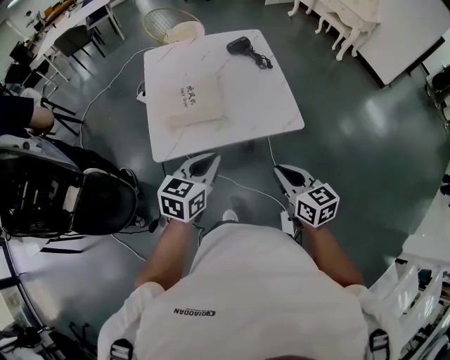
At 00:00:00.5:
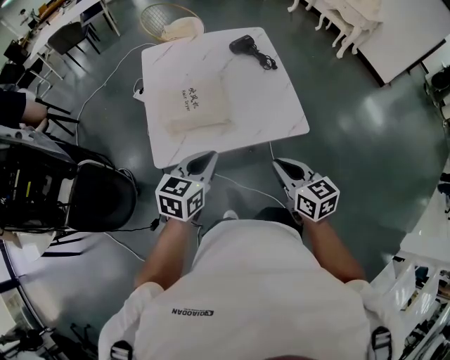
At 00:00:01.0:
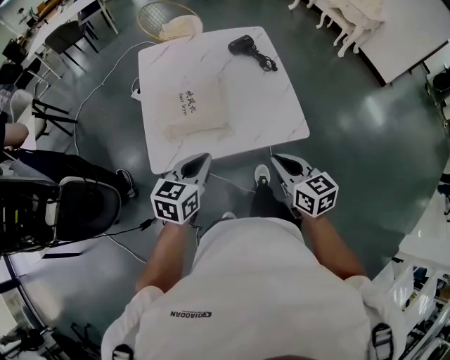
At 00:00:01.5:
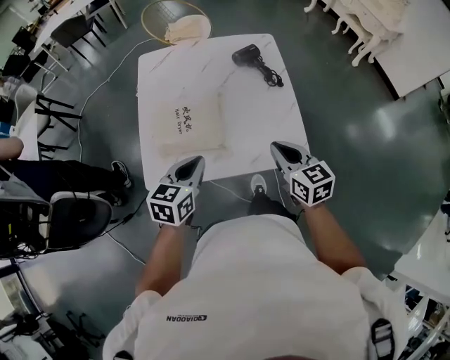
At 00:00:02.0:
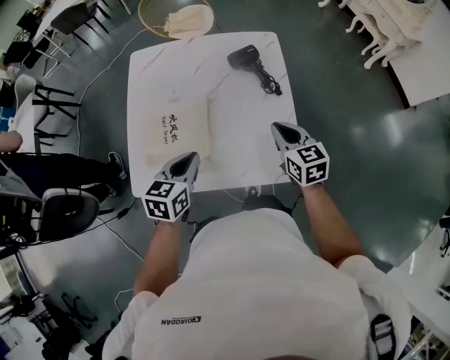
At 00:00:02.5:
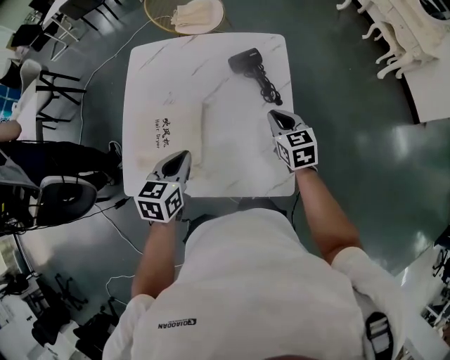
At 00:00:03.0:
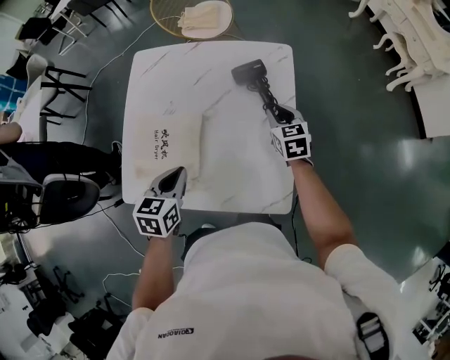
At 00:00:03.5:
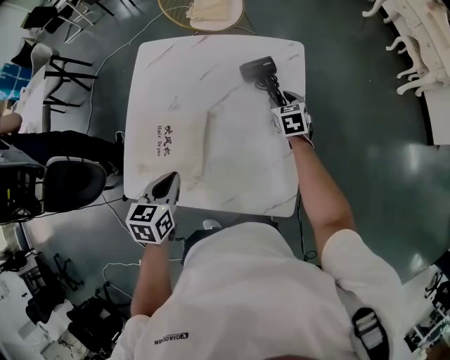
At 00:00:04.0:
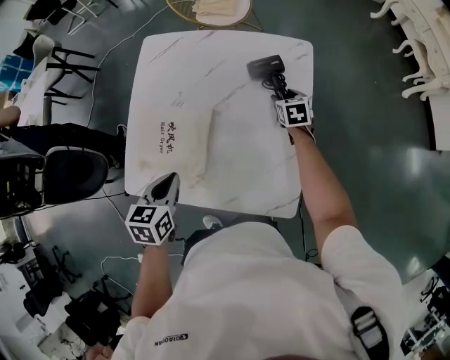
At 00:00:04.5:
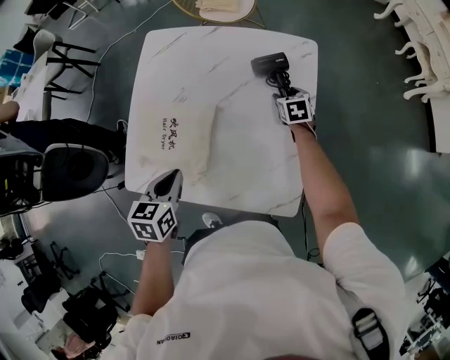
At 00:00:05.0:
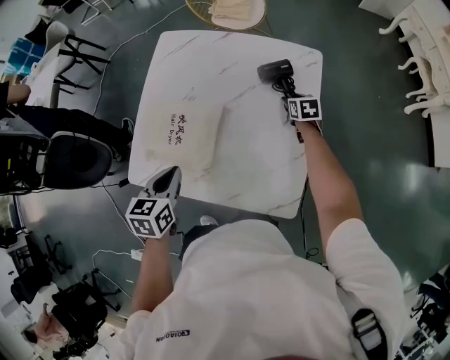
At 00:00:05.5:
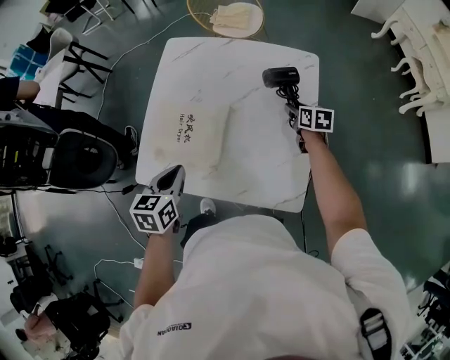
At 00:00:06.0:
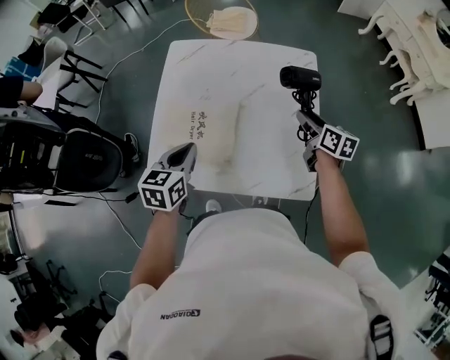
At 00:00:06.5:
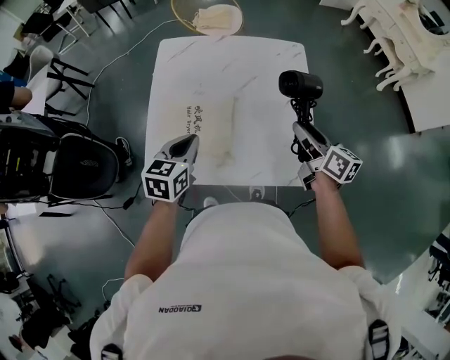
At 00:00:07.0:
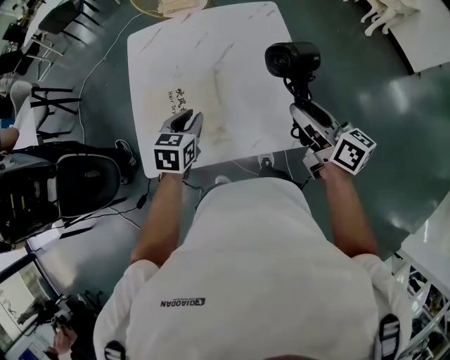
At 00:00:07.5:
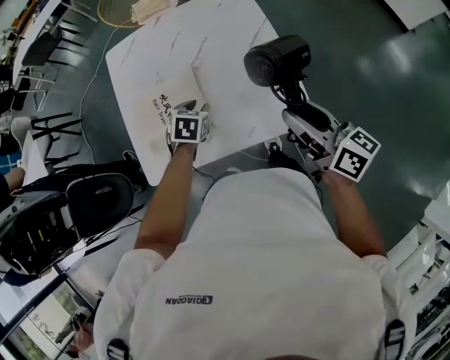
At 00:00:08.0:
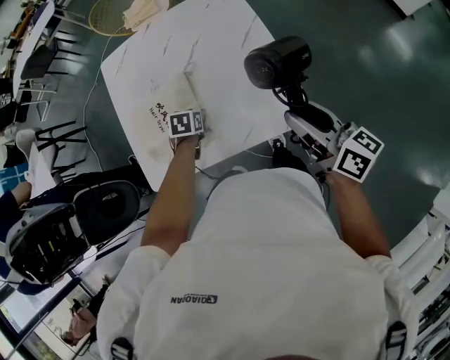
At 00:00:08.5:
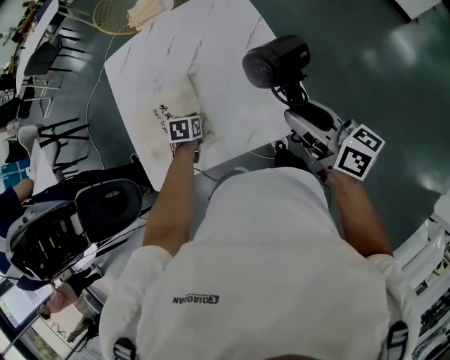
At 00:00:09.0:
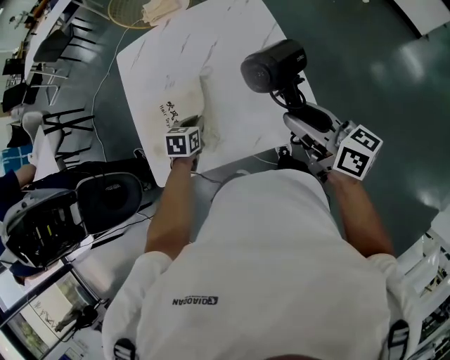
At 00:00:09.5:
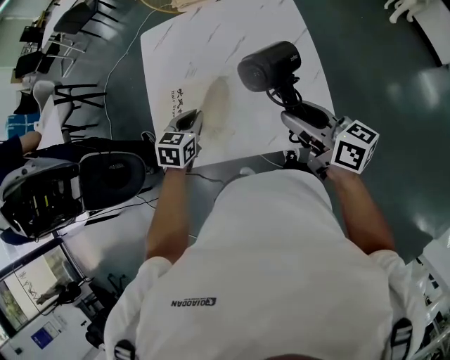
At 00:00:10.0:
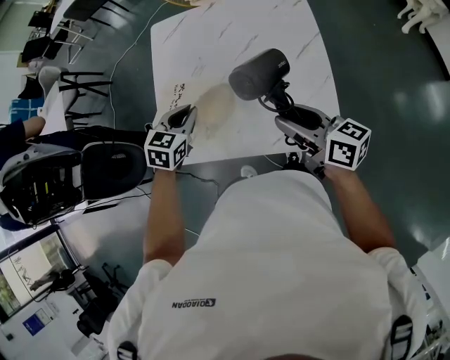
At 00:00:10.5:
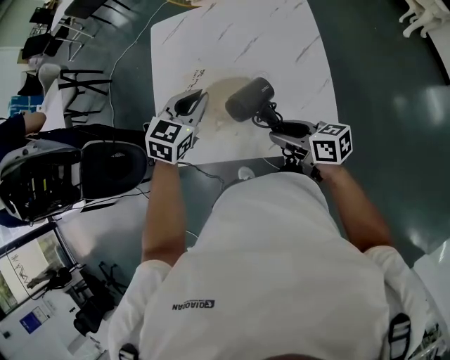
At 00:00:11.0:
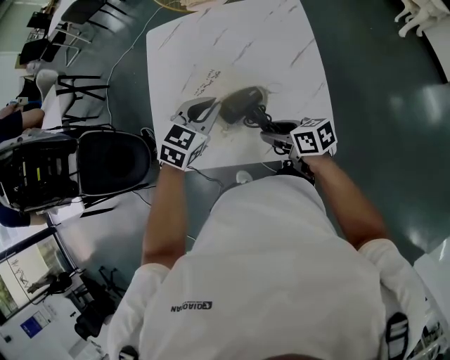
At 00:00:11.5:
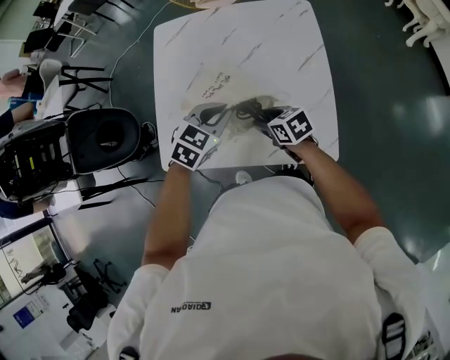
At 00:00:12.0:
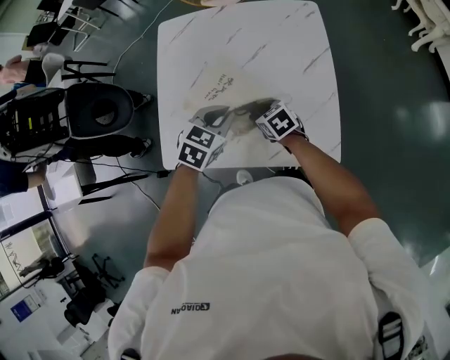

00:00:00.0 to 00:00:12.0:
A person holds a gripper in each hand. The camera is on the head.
00:00:00.0 to 00:00:02.0: The right gripper heads forward, covering about 40 cm. Meanwhile the left gripper moves forward, about 25 cm.
00:00:02.0 to 00:00:04.0: The right gripper moves forward and downward, approximately 35 cm, and opens up, while the left gripper swivels approximately 20 degrees.
00:00:04.0 to 00:00:06.0: The left gripper heads to the left, covering some 5 cm; the right gripper is displaced upward and backward by about 25 cm, and swivels approximately 40 degrees.
00:00:06.0 to 00:00:08.0: The right gripper shifts about 25 cm backward and upward, and turns by roughly 20 degrees, while the left gripper travels downward and to the right by some 20 cm, tilts its fingers approximately 30 degrees downward, and opens up.
00:00:08.0 to 00:00:10.0: The left gripper goes some 20 cm upward and to the left, rotates roughly 30 degrees, and closes; the right gripper shifts about 10 cm to the left and forward, and rotates roughly 30 degrees.
00:00:10.0 to 00:00:12.0: The right gripper moves downward and forward, some 20 cm, and tilts its fingers approximately 40 degrees downward. The left gripper heads to the right, covering approximately 10 cm.

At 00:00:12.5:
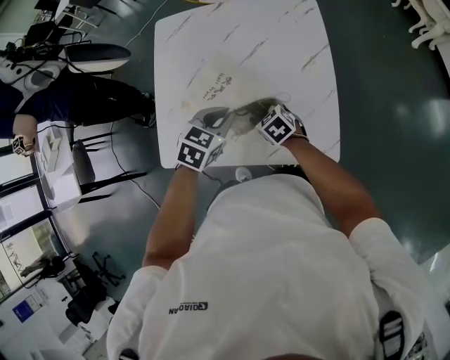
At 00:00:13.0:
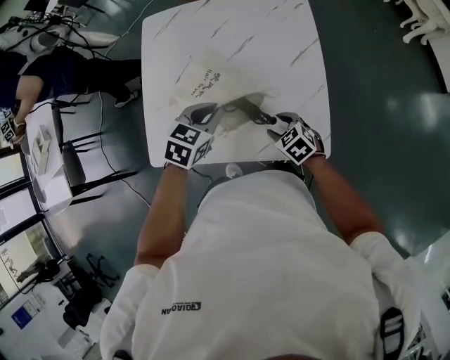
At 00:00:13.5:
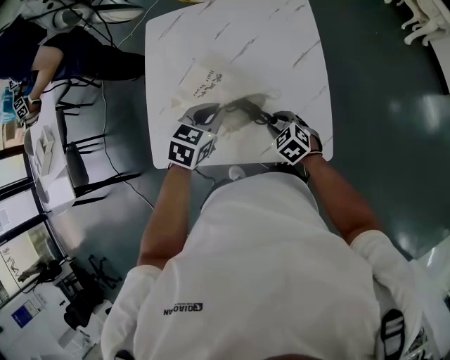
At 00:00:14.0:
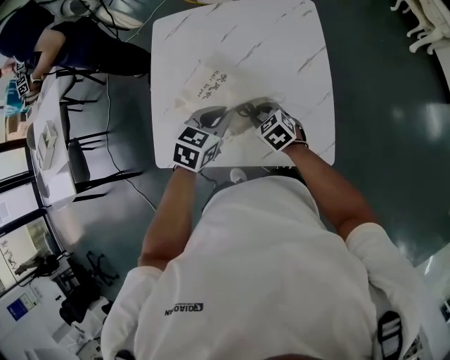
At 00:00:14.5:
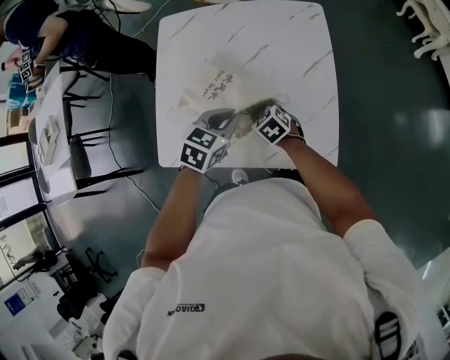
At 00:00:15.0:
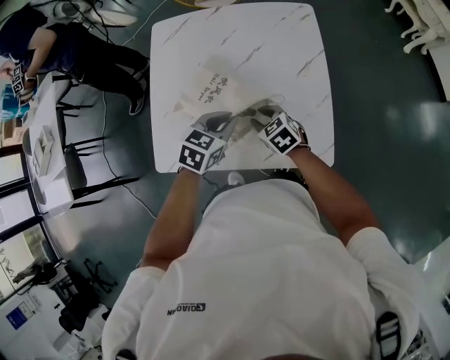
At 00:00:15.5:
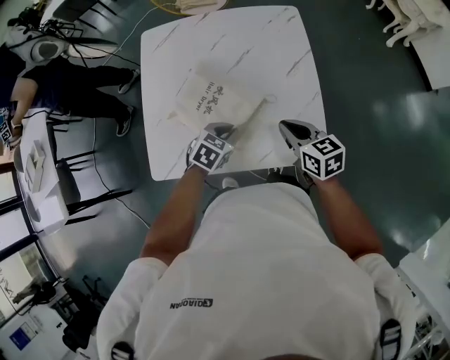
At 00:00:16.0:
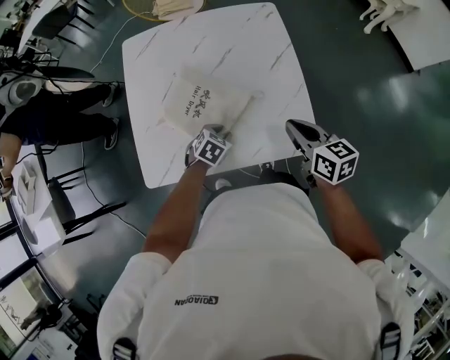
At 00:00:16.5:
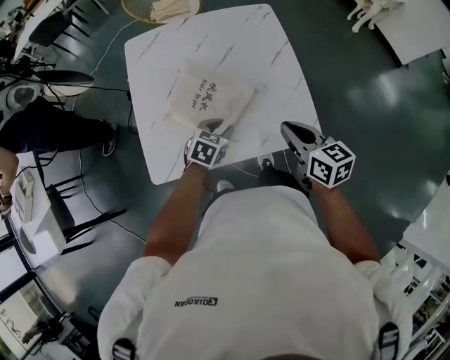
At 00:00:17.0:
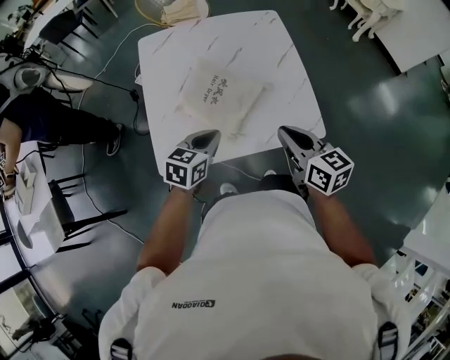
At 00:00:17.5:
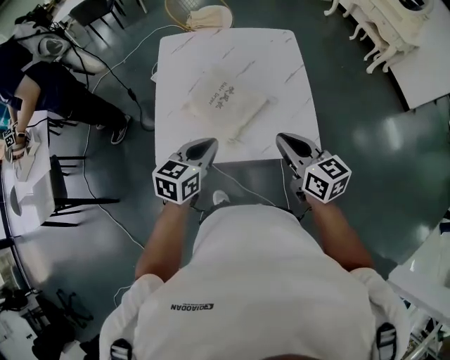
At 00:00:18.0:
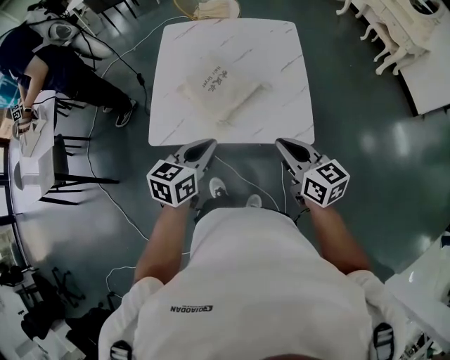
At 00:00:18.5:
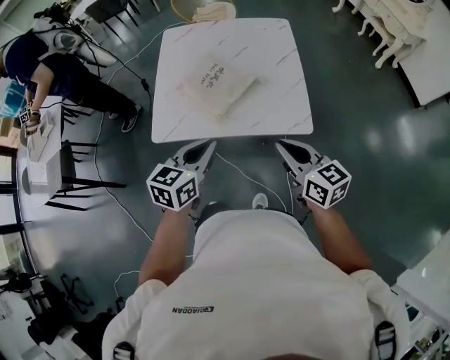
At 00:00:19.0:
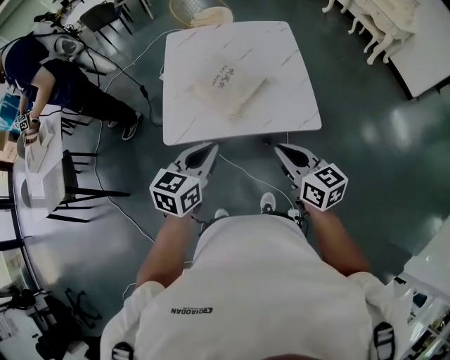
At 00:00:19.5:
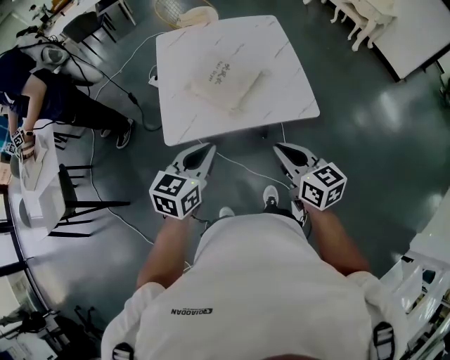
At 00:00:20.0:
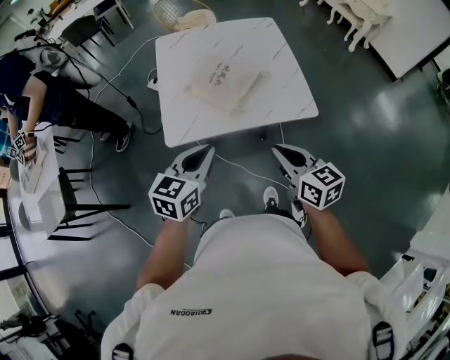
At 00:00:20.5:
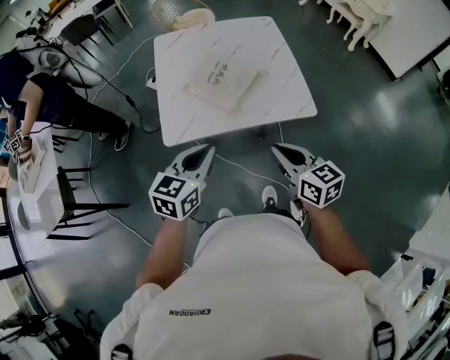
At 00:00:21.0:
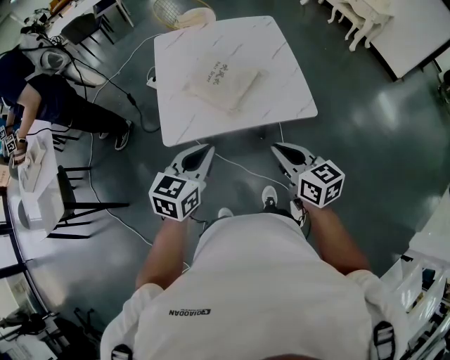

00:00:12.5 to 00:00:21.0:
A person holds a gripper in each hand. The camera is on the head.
00:00:12.5 to 00:00:14.5: The right gripper travels to the right and back again, roughly 10 cm each way, and closes.
00:00:14.5 to 00:00:16.5: The right gripper moves upward, backward and to the right, approximately 25 cm, turns by roughly 50 degrees, and closes, while the left gripper moves downward and backward, roughly 10 cm, and opens up.
00:00:16.5 to 00:00:19.0: The right gripper is displaced backward by about 20 cm, while the left gripper goes roughly 35 cm backward and upward, rotates approximately 30 degrees, and closes.
00:00:19.0 to 00:00:21.0: The grippers move only a little.

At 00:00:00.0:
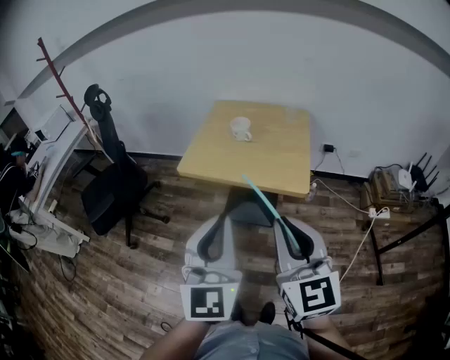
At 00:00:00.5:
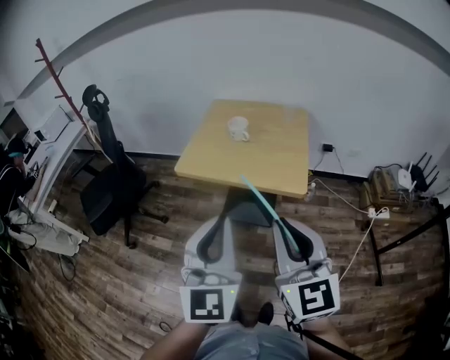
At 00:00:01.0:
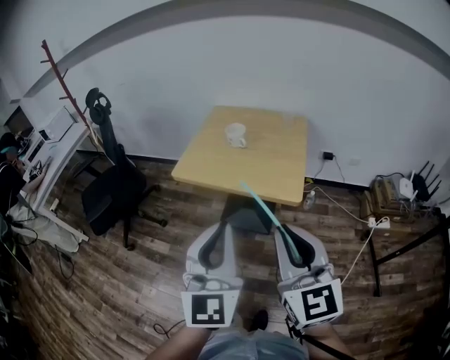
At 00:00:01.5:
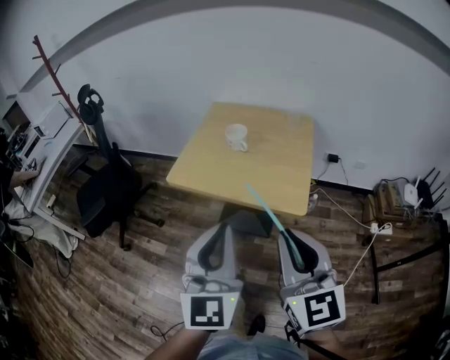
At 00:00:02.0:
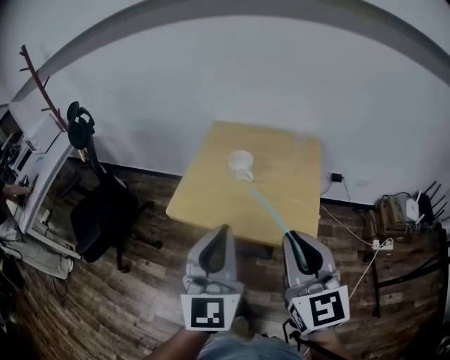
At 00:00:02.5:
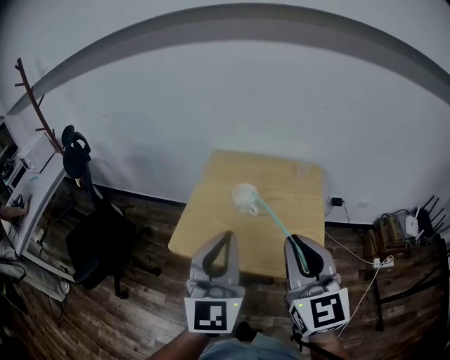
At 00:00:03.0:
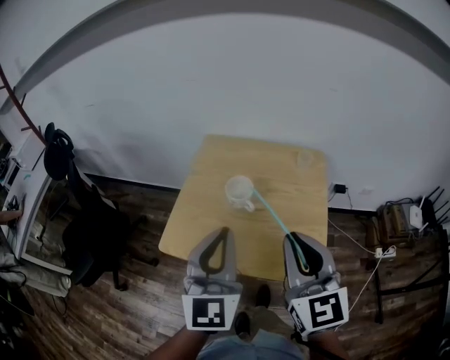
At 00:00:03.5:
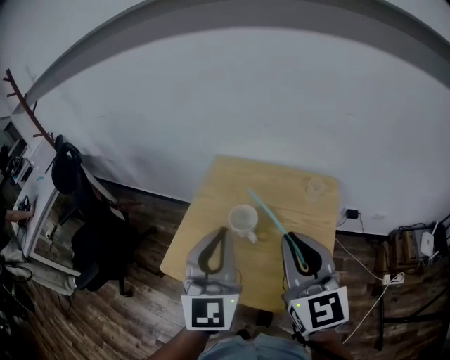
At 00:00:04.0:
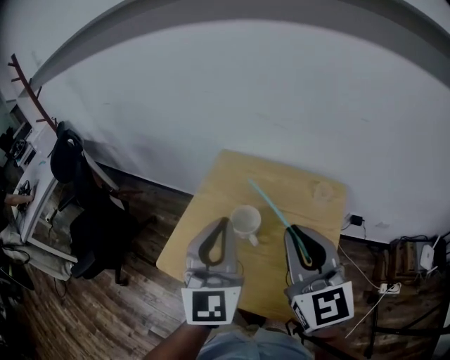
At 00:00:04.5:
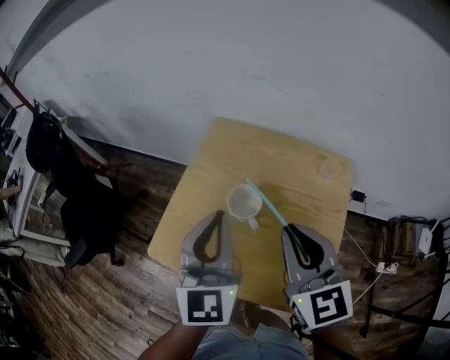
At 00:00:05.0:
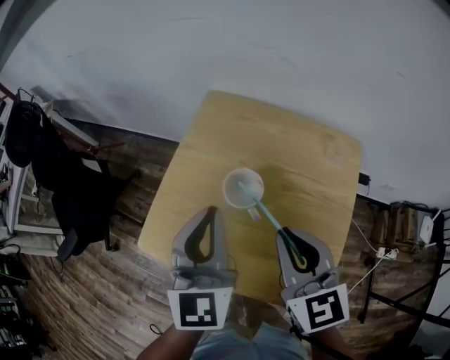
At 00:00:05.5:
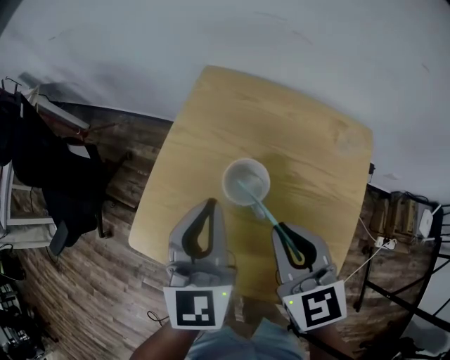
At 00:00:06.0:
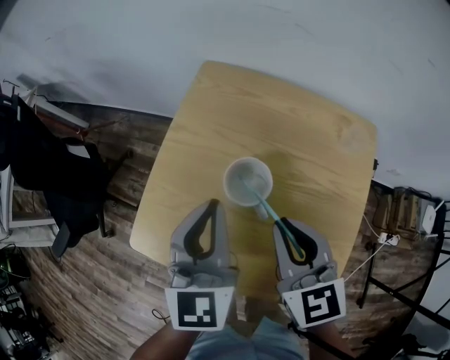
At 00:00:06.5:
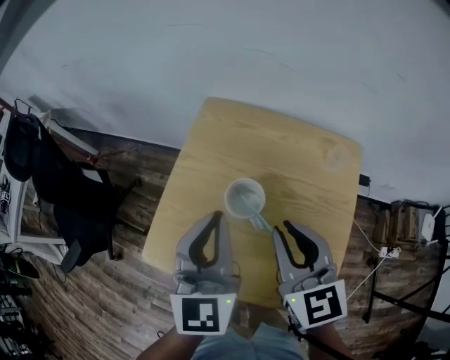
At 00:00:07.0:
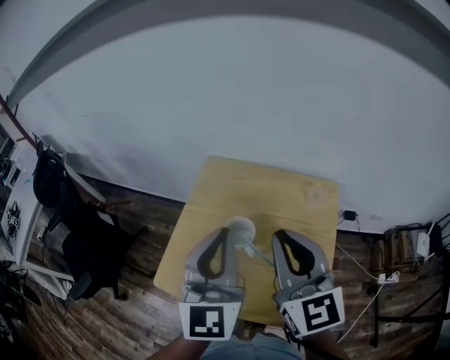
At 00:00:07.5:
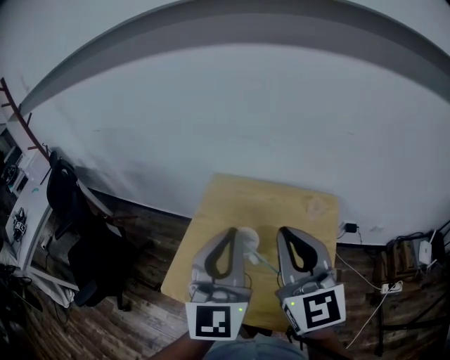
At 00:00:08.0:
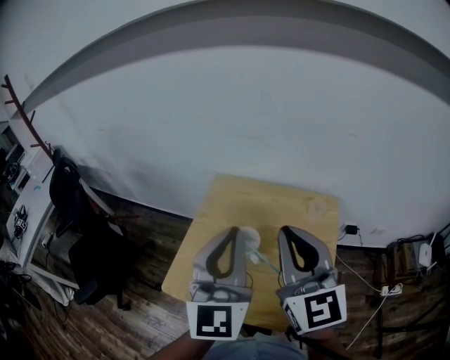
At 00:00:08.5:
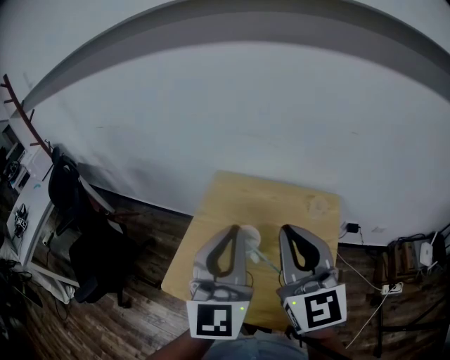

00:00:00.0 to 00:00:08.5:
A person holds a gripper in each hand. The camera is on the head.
00:00:00.0 to 00:00:02.0: The two grippers go approximately 20 cm forward.
00:00:02.0 to 00:00:04.0: The grippers both shift forward by roughly 25 cm.
00:00:04.0 to 00:00:06.5: The right gripper is displaced downward by about 15 cm; the left gripper goes some 10 cm downward and forward.
00:00:06.5 to 00:00:08.5: The two grippers go some 15 cm upward. The right gripper rotates about 30 degrees.
